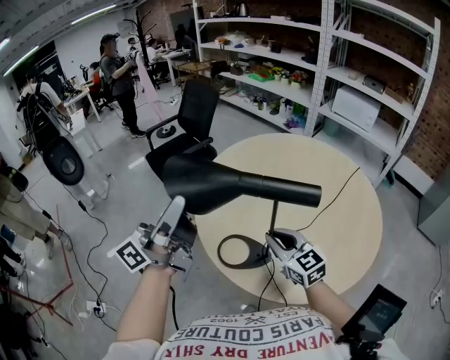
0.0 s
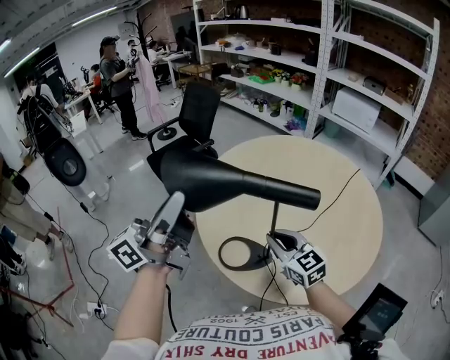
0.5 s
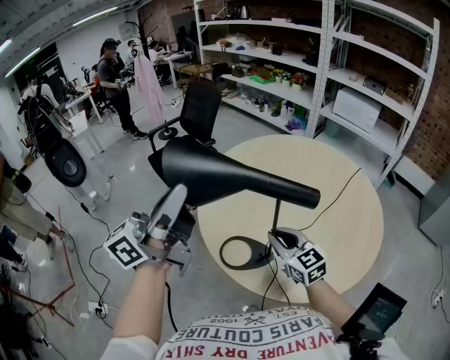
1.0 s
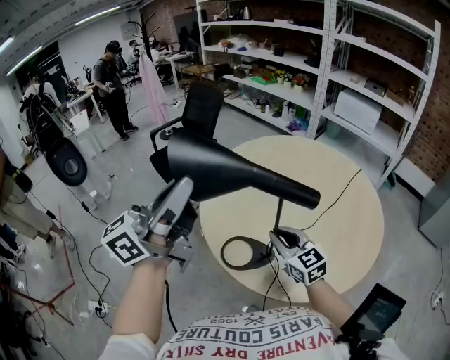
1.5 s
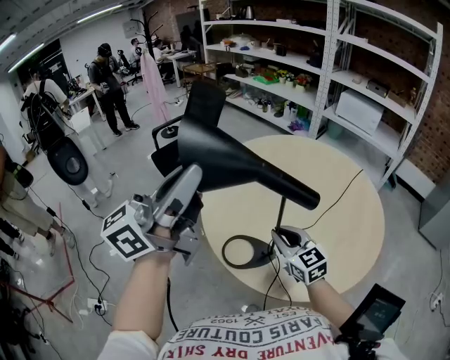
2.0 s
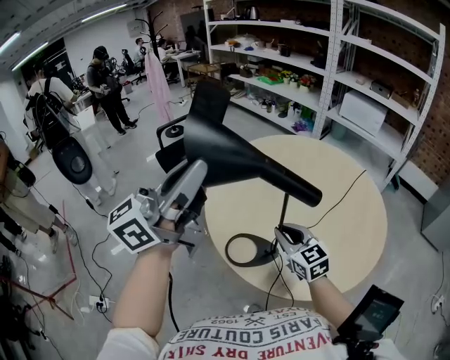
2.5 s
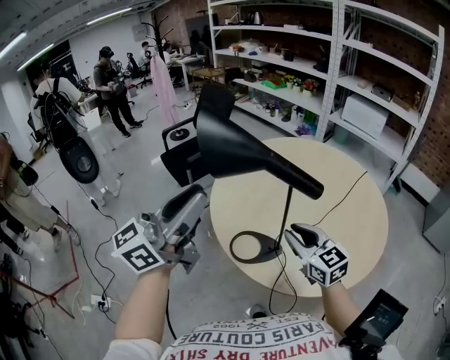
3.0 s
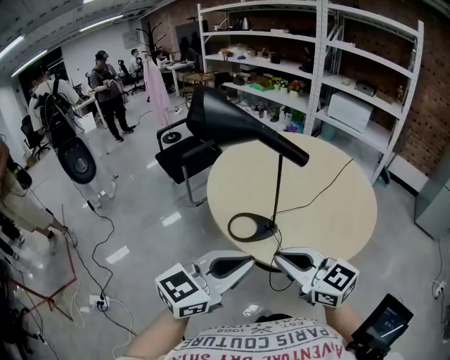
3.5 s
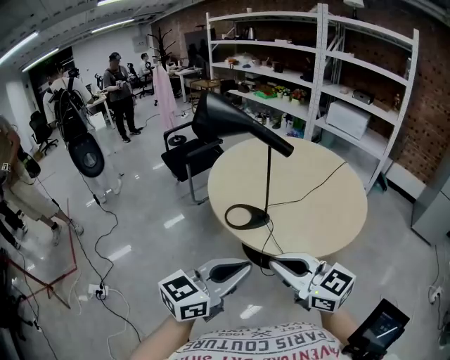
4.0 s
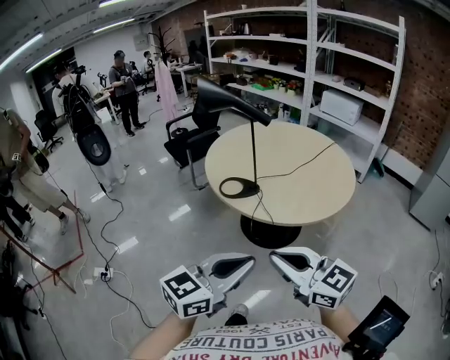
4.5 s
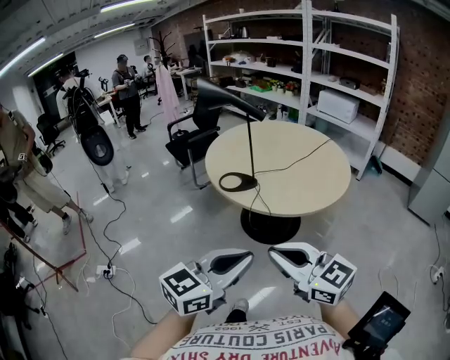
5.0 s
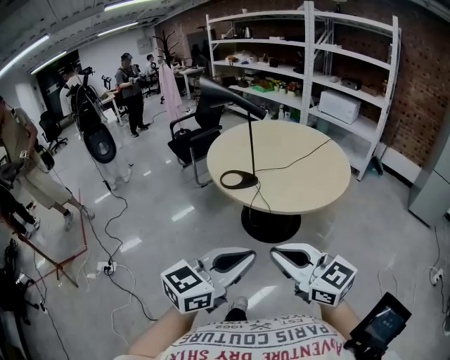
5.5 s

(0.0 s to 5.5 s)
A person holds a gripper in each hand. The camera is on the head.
0.0 s - 2.0 s: The left gripper travels upward by some 10 cm, and changes its angle by some 20 degrees.
2.0 s - 3.5 s: The left gripper goes roughly 30 cm backward, downward and to the right, and angles its fingers downward, by some 30 degrees. The right gripper goes some 25 cm backward and upward.
3.5 s - 5.5 s: Both grippers travel together backward, about 30 cm.

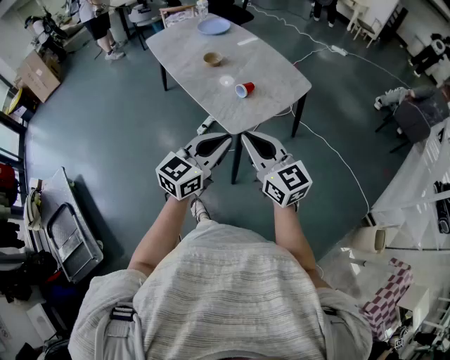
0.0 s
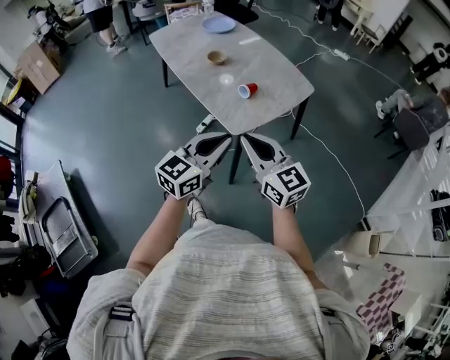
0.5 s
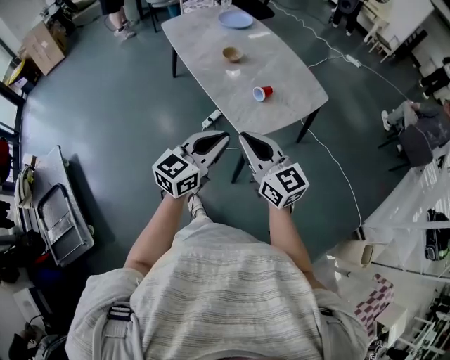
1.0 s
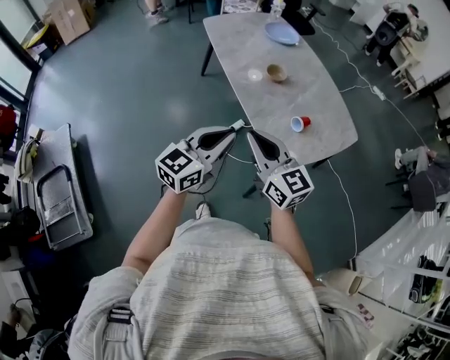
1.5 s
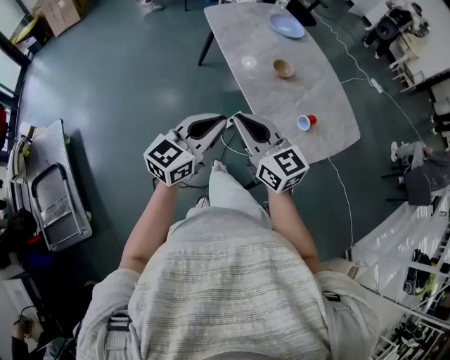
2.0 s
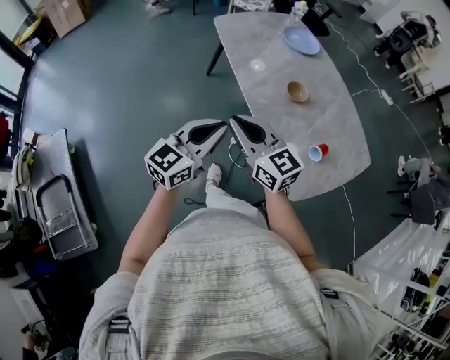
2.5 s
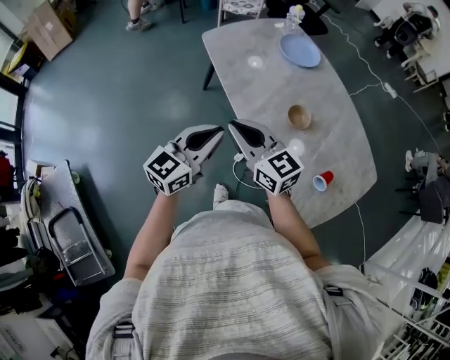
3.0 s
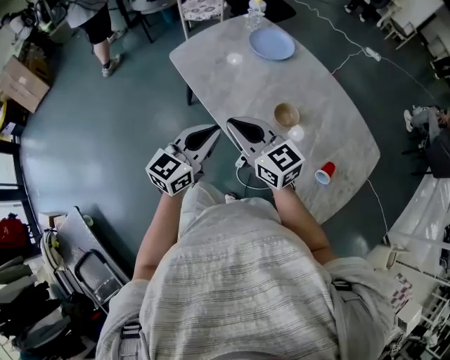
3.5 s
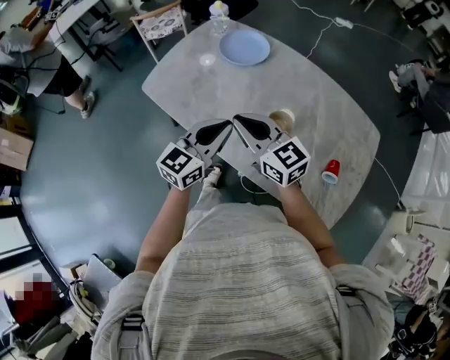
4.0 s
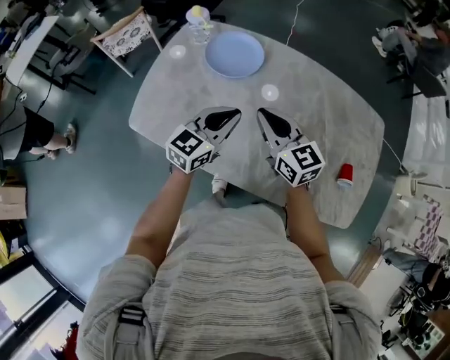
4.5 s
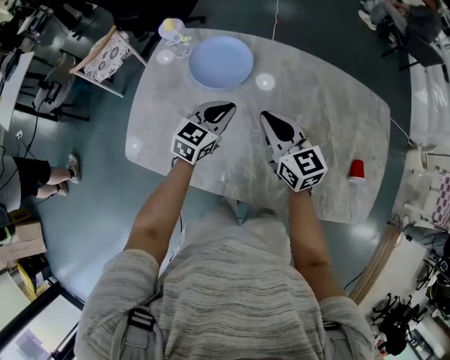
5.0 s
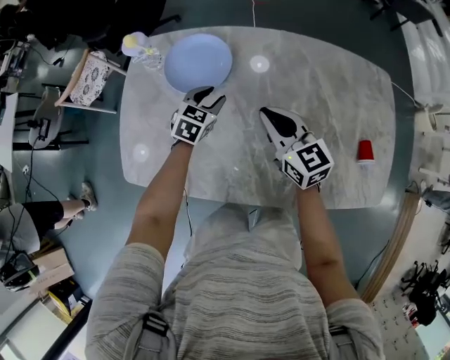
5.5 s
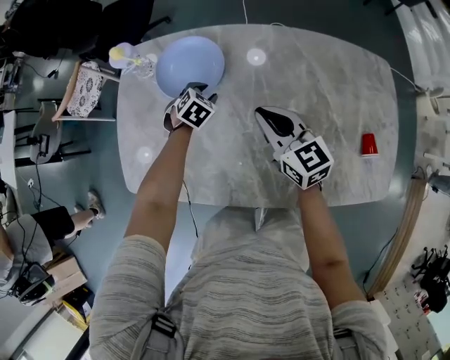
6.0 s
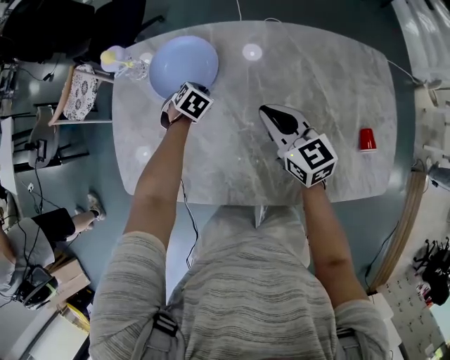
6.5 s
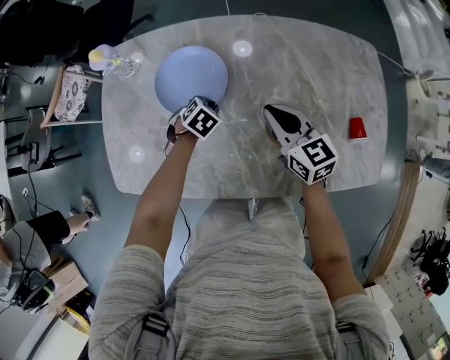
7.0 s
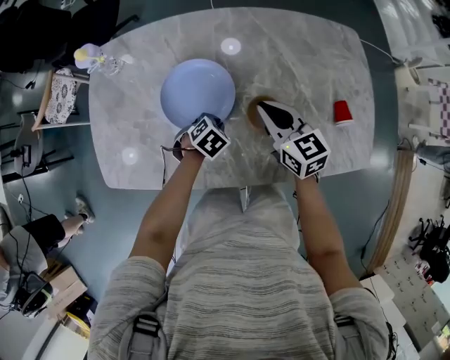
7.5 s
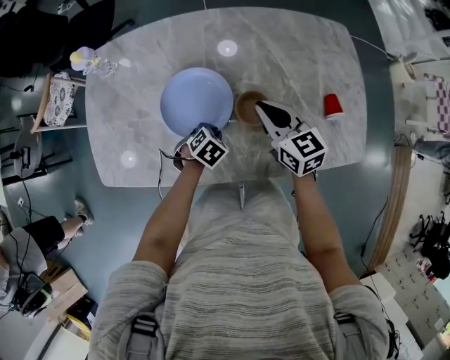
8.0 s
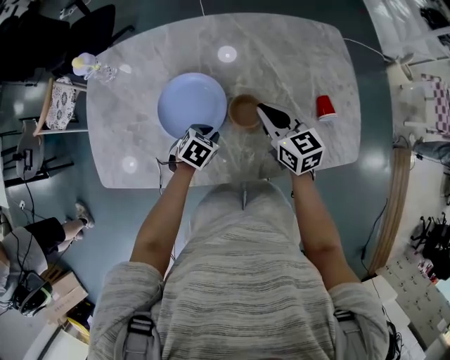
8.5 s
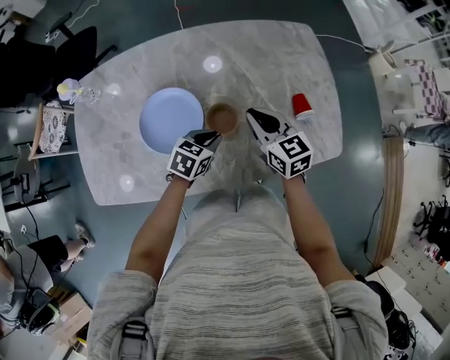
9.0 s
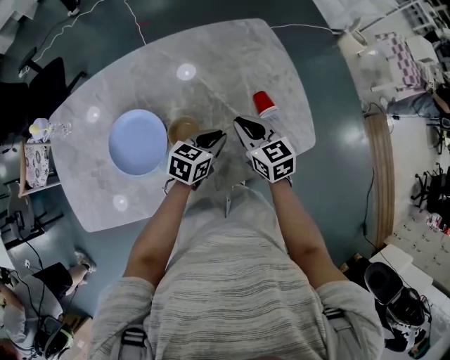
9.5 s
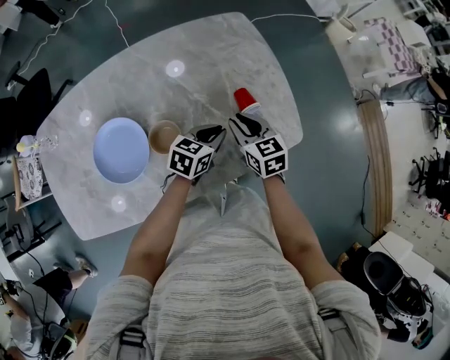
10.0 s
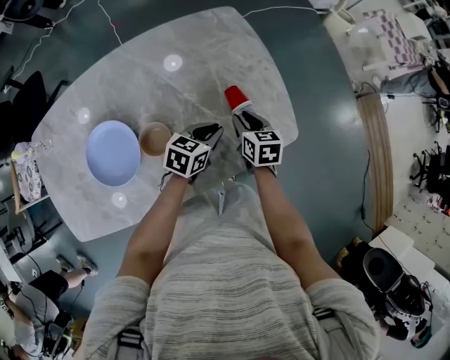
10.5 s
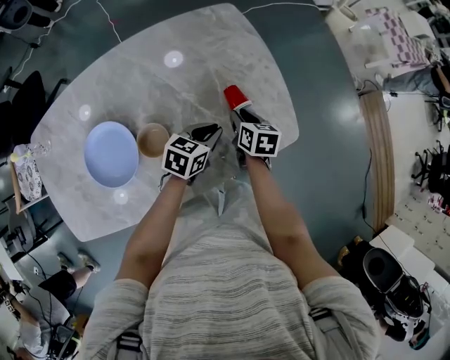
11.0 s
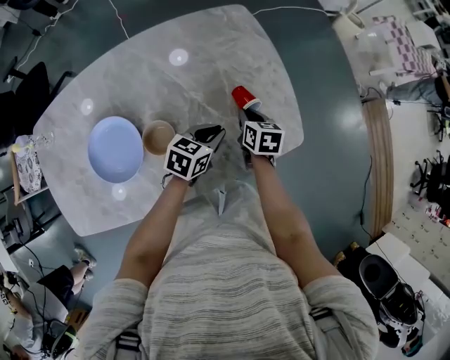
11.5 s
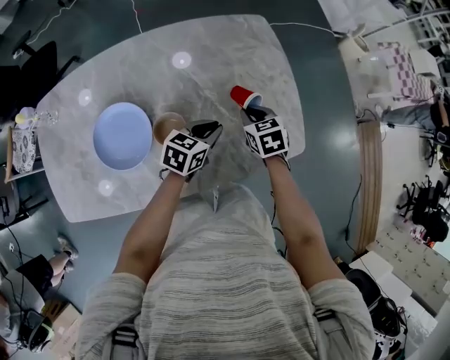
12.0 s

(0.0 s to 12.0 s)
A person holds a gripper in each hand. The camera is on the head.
0.0 s - 2.0 s: The grippers both shift to the left and forward by about 35 cm.
2.0 s - 4.0 s: The two grippers travel together, some 50 cm. The right gripper turns by some 20 degrees. Meanwhile the left gripper rotates approximately 30 degrees.
4.0 s - 6.0 s: The right gripper moves some 30 cm, and swivels roughly 40 degrees; the left gripper shifts by about 50 cm, tips its fingers downward by about 60 degrees, and opens.
6.0 s - 8.0 s: The right gripper shifts some 15 cm to the right and backward. The left gripper travels backward and to the right by some 25 cm, and closes up.
8.0 s - 10.0 s: The right gripper goes about 25 cm to the right, and rotates roughly 20 degrees; the left gripper heads to the right and upward, covering approximately 30 cm, and tips its fingers upward by approximately 40 degrees.
10.0 s - 12.0 s: The right gripper swivels some 20 degrees.

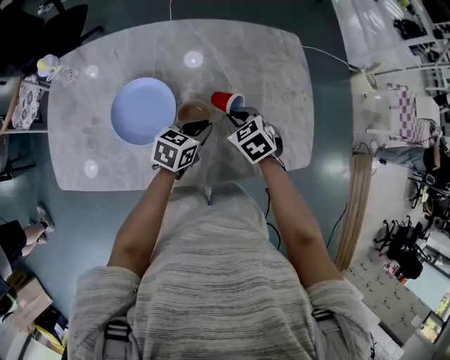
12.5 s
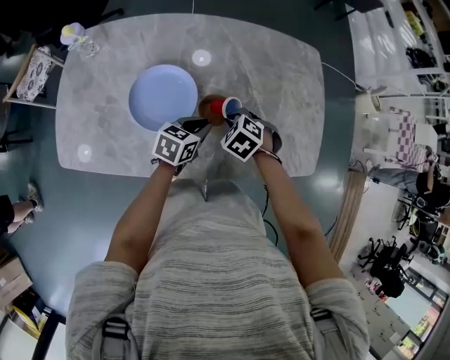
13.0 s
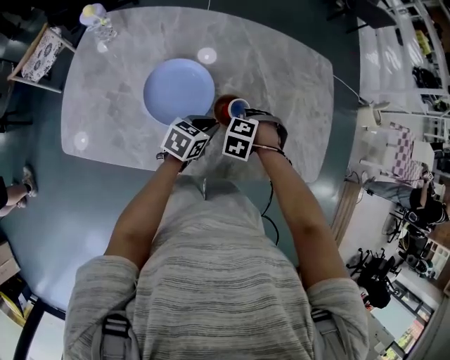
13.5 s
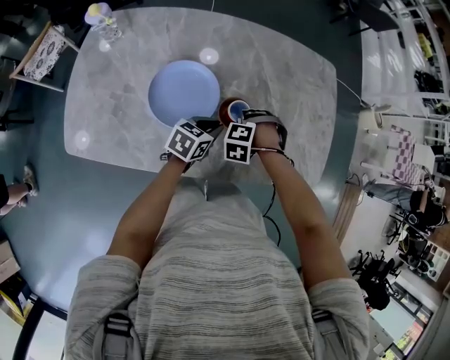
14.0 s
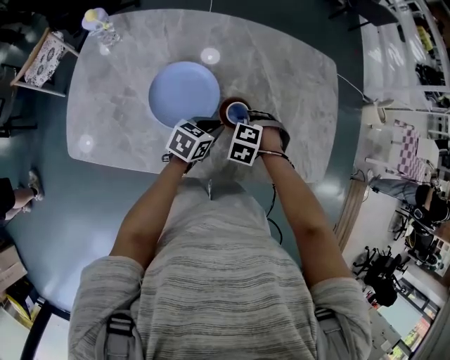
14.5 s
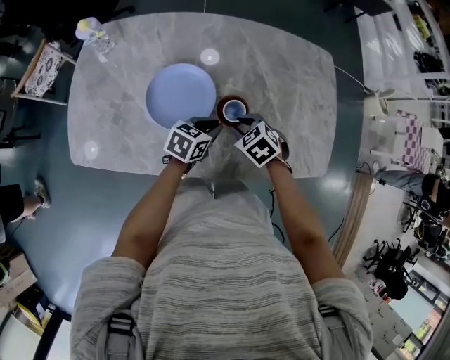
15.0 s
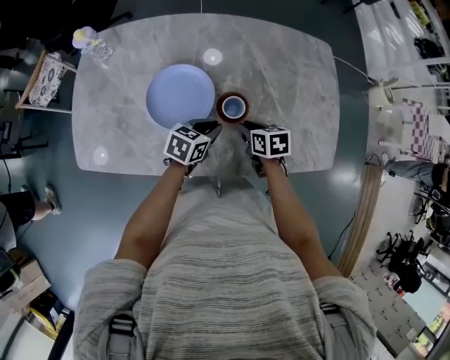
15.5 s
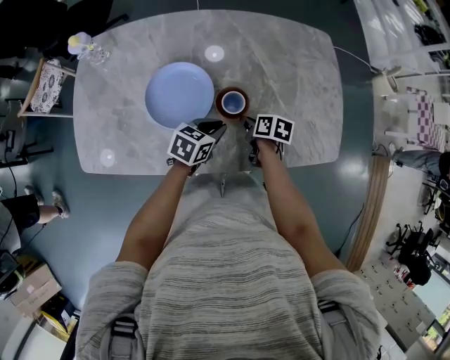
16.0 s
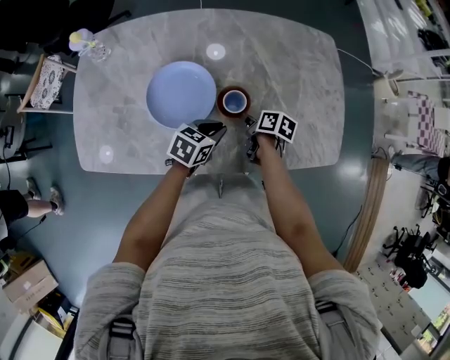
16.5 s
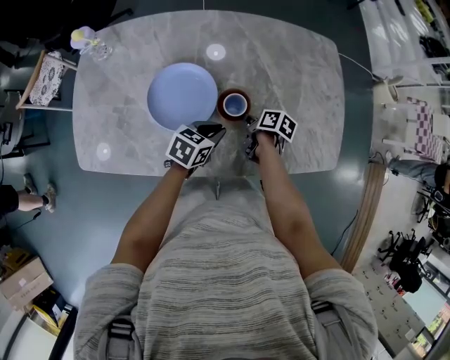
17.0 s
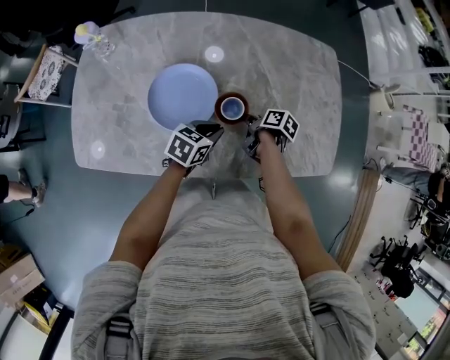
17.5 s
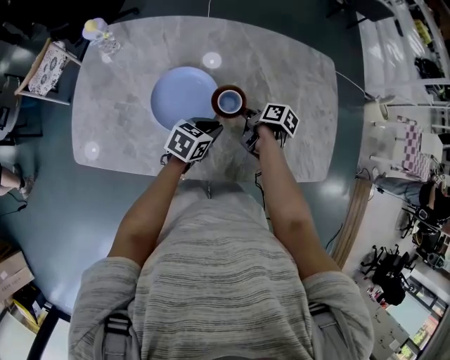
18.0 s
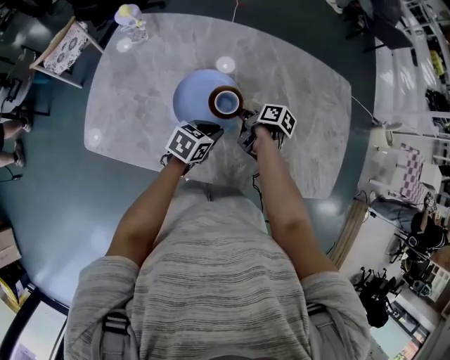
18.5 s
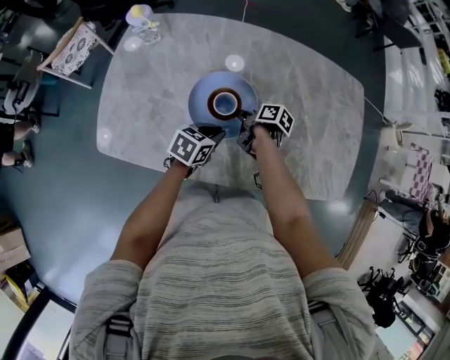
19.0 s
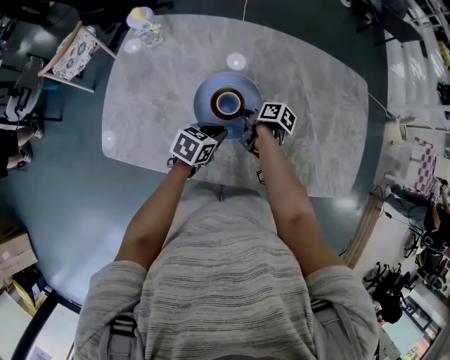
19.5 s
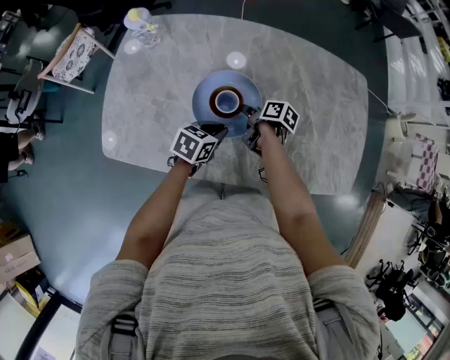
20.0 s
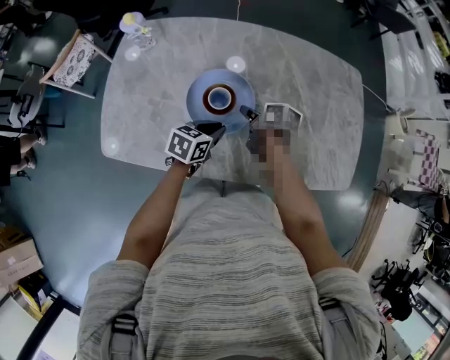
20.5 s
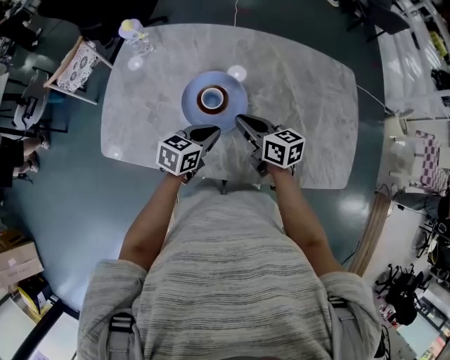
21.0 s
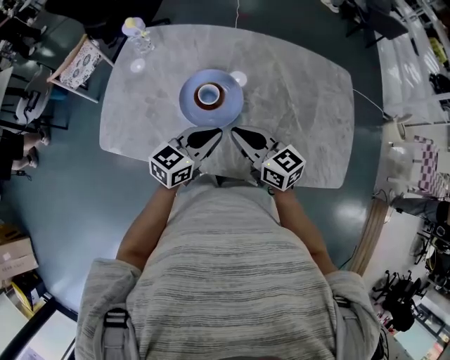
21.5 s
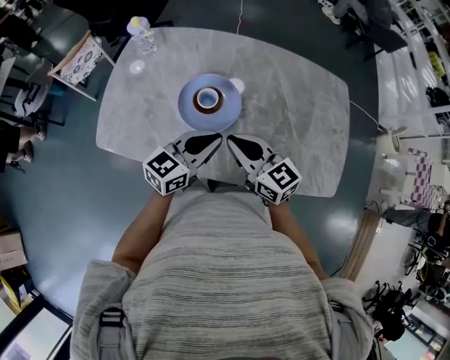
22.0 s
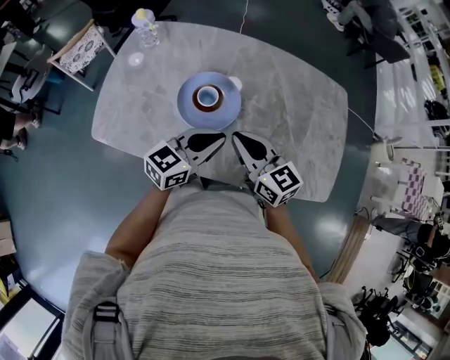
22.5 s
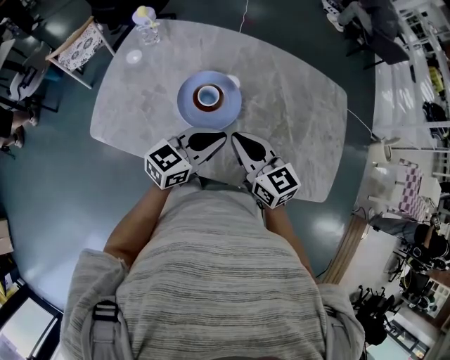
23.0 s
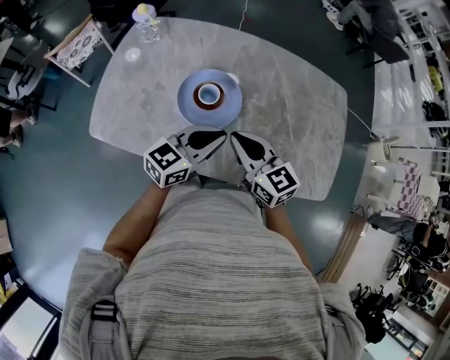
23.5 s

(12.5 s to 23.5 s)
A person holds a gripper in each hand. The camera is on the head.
12.5 s - 14.5 s: The left gripper shifts by approximately 10 cm; the right gripper shifts by roughly 15 cm, and twists roughly 50 degrees counterclockwise, seen from behind.
14.5 s - 16.0 s: The right gripper shifts by roughly 5 cm, and rotates around the line of its fingers by about 110 degrees, clockwise from behind.
16.0 s - 18.0 s: The right gripper is displaced forward by approximately 5 cm.
18.0 s - 20.0 s: Both grippers travel together to the left, some 15 cm.
20.0 s - 21.5 s: The left gripper is displaced upward and backward by roughly 15 cm, and changes its angle by about 30 degrees. The right gripper travels upward and backward by about 25 cm, and twists about 60 degrees counterclockwise, seen from behind.
21.5 s - 23.5 s: The grippers move only a little.
